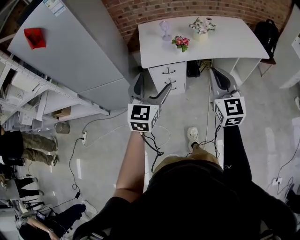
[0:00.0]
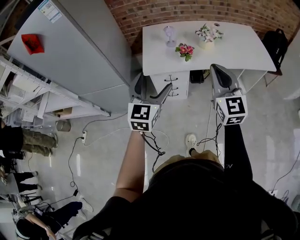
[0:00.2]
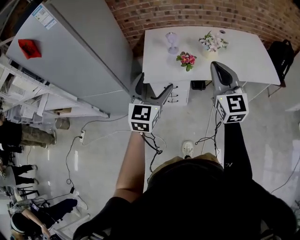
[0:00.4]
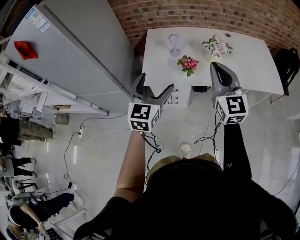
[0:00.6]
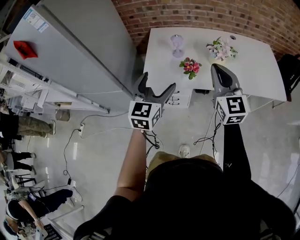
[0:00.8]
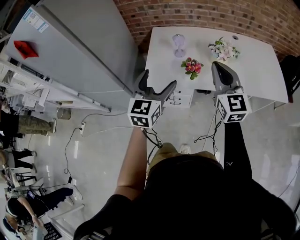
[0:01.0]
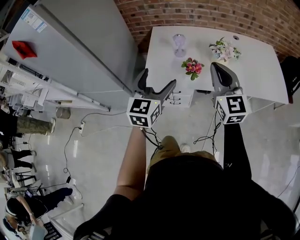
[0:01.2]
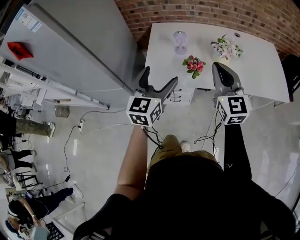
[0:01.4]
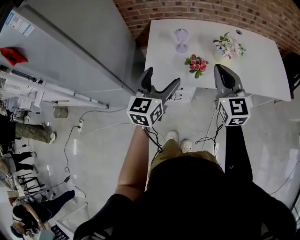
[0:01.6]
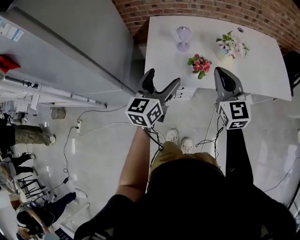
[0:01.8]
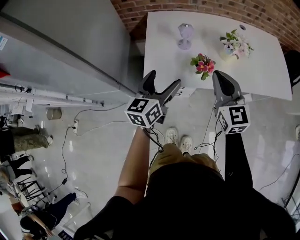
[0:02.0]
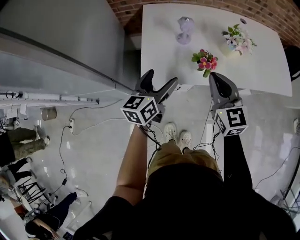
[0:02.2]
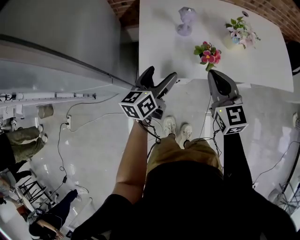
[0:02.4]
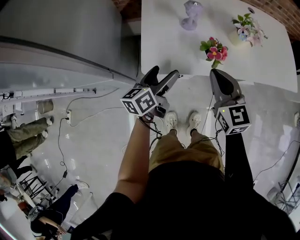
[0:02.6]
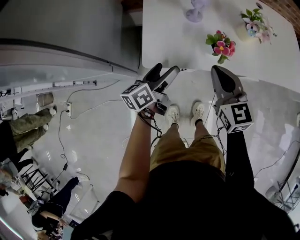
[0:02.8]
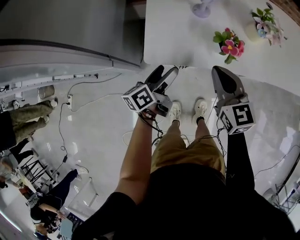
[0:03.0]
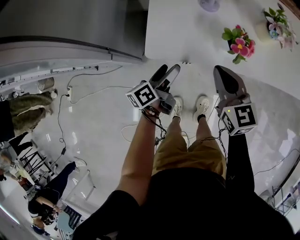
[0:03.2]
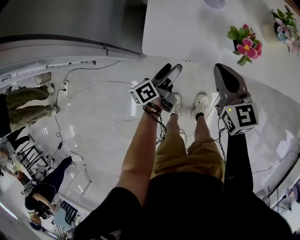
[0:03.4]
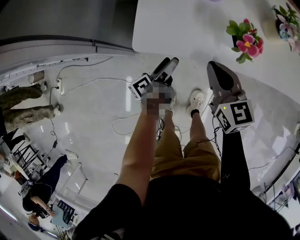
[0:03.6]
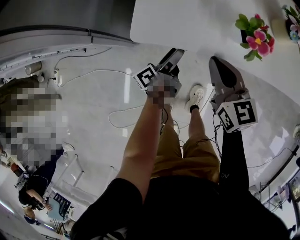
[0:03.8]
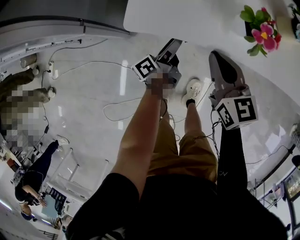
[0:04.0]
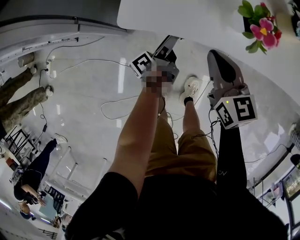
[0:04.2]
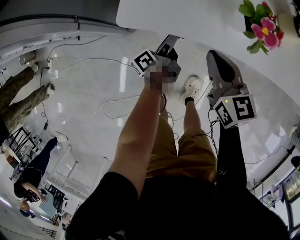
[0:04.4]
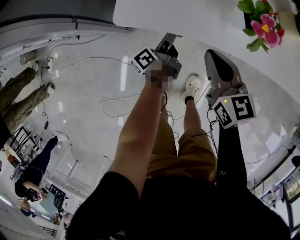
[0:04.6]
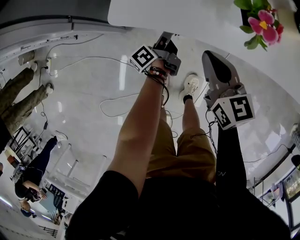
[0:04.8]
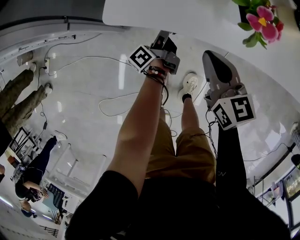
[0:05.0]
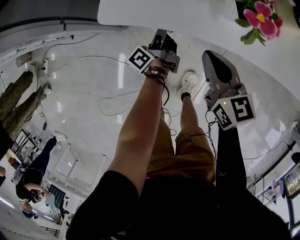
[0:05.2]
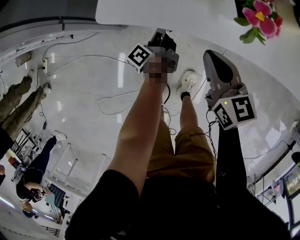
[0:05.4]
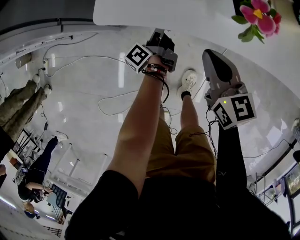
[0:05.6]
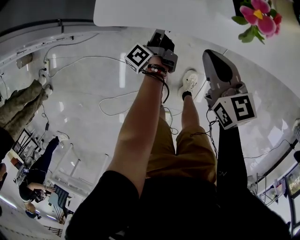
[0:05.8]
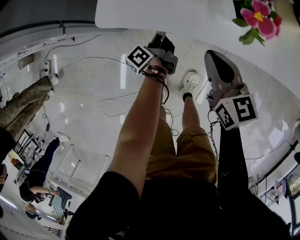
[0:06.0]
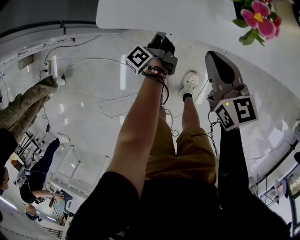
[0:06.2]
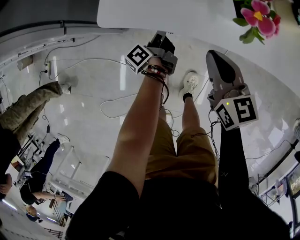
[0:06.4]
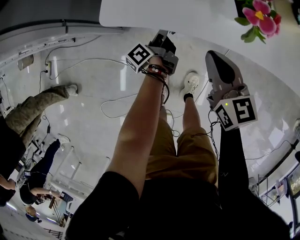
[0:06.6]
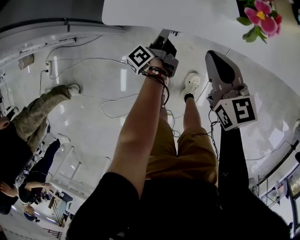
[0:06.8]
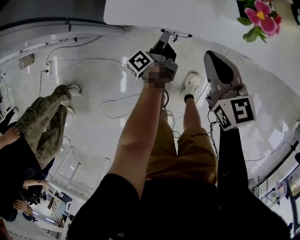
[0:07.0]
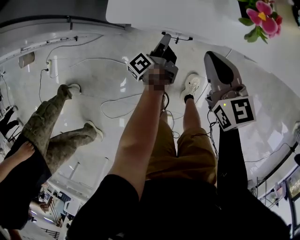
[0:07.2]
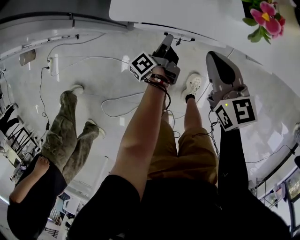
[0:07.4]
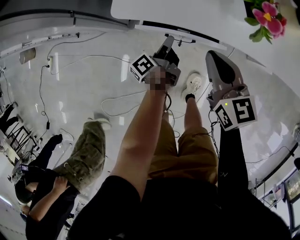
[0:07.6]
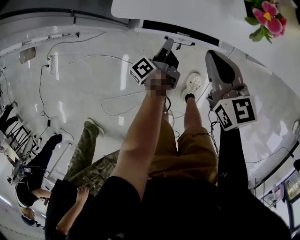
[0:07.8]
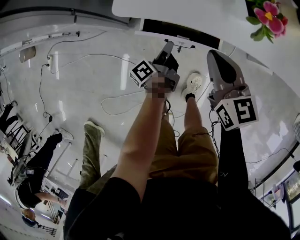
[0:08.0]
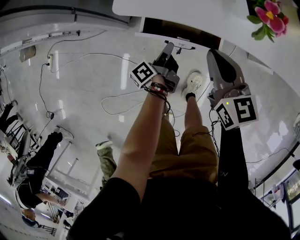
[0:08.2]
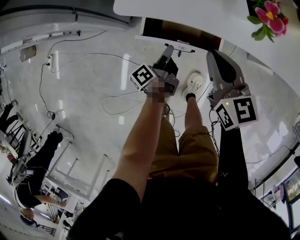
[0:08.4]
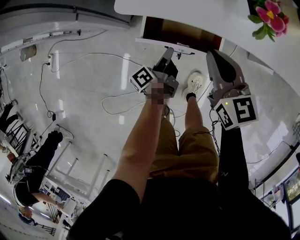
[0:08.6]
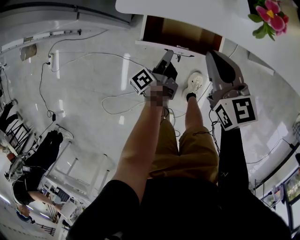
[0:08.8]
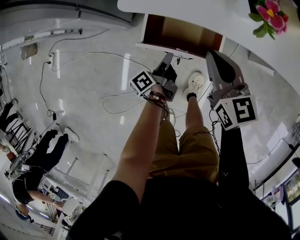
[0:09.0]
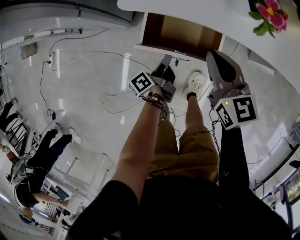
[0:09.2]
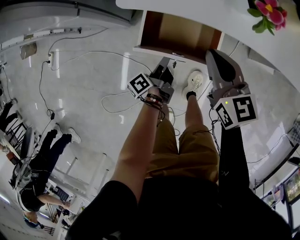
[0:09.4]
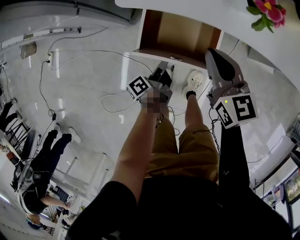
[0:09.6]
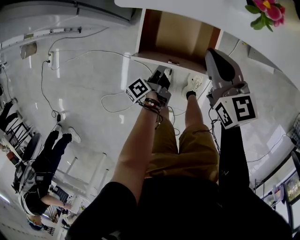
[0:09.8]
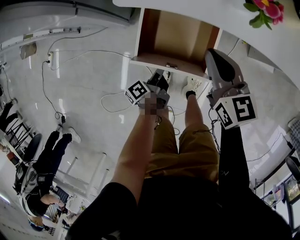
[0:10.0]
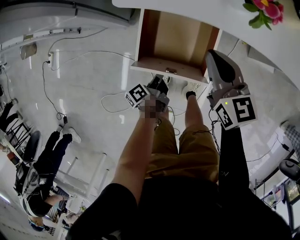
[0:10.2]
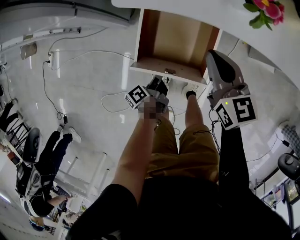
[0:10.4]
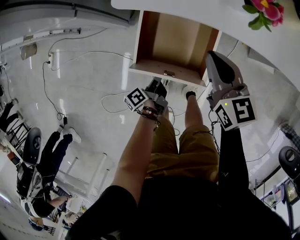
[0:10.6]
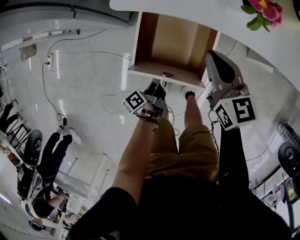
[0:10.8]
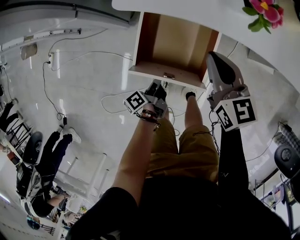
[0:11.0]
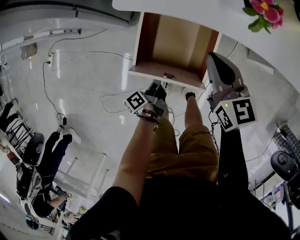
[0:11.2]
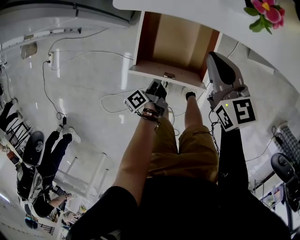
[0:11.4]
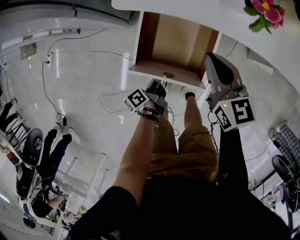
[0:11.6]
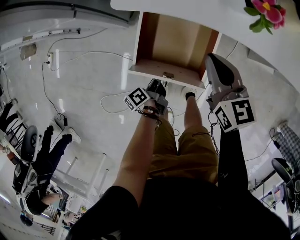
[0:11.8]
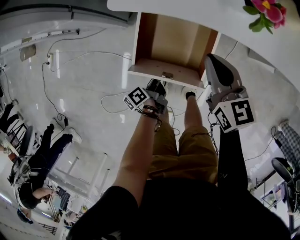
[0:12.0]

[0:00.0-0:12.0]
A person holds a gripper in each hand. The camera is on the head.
0.0 to 1.6 s: Both grippers move forward, some 25 cm.
1.6 to 3.0 s: The left gripper shifts some 25 cm downward, and twists some 60 degrees counterclockwise, seen from behind. Meanwhile the right gripper shifts roughly 25 cm downward and to the left, and turns by about 20 degrees.
3.0 to 4.4 s: The two grippers go roughly 15 cm downward. The left gripper turns by approximately 30 degrees.
4.4 to 6.0 s: The left gripper closes.
6.0 to 7.6 s: The left gripper travels backward by about 5 cm.
7.6 to 9.0 s: The left gripper heads backward, covering about 10 cm.
9.0 to 10.4 s: The left gripper goes approximately 10 cm backward.
10.4 to 12.0 s: The grippers make only small movements.

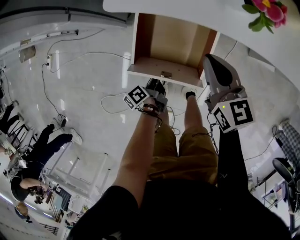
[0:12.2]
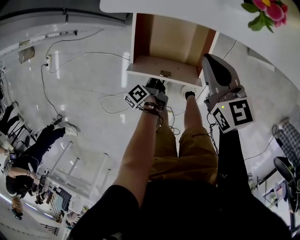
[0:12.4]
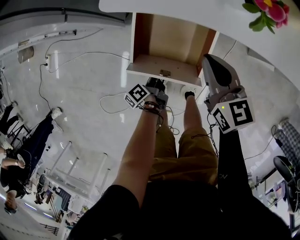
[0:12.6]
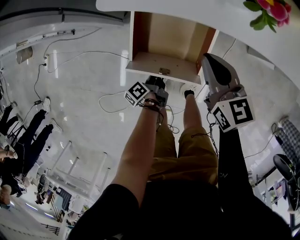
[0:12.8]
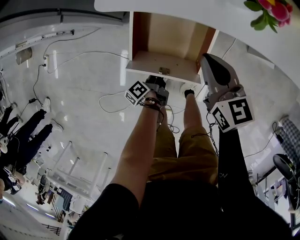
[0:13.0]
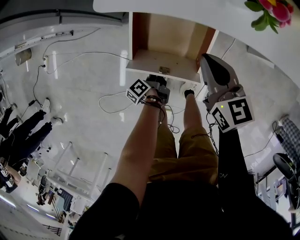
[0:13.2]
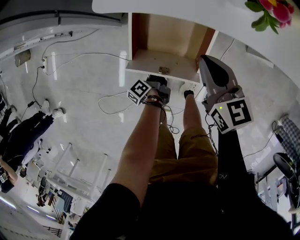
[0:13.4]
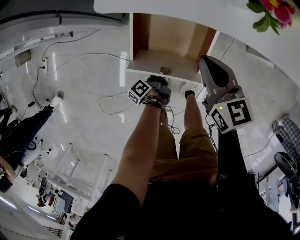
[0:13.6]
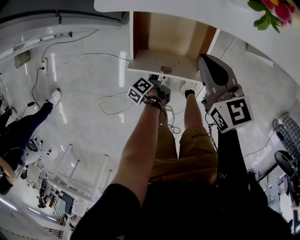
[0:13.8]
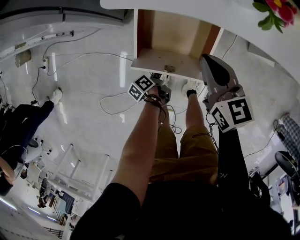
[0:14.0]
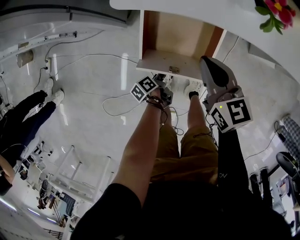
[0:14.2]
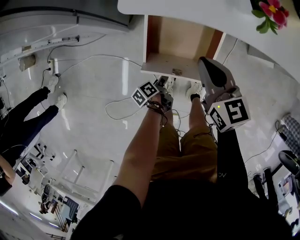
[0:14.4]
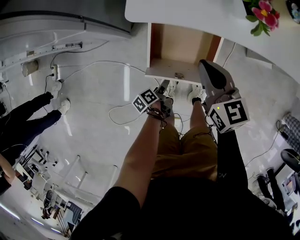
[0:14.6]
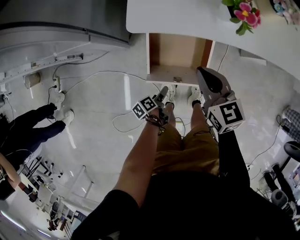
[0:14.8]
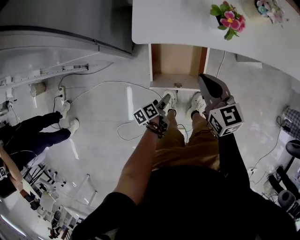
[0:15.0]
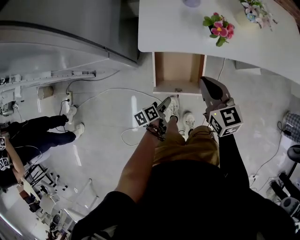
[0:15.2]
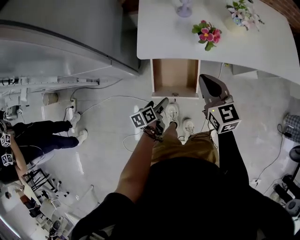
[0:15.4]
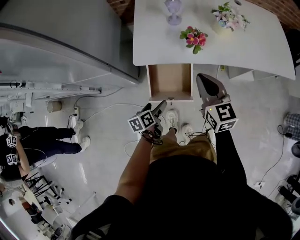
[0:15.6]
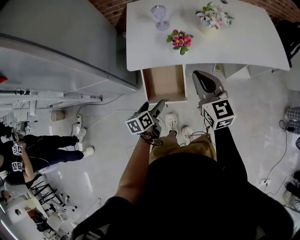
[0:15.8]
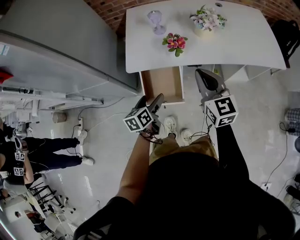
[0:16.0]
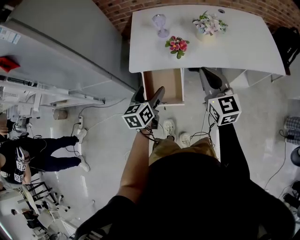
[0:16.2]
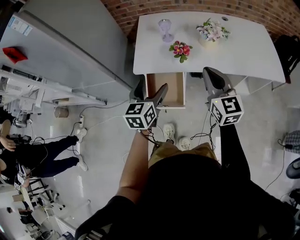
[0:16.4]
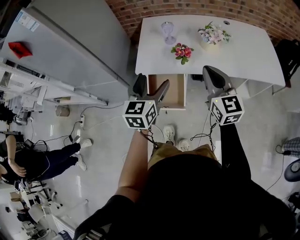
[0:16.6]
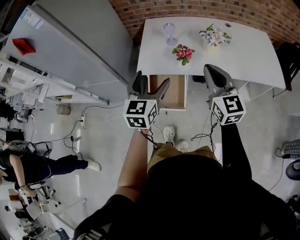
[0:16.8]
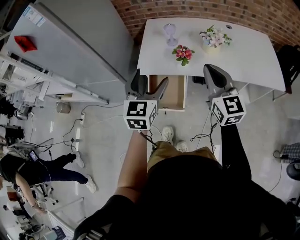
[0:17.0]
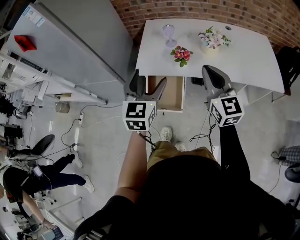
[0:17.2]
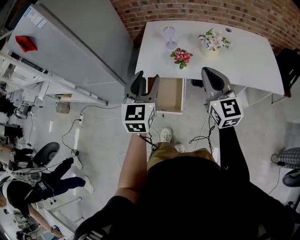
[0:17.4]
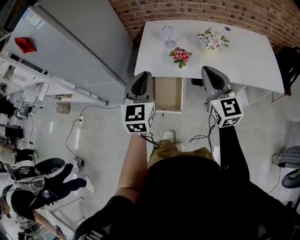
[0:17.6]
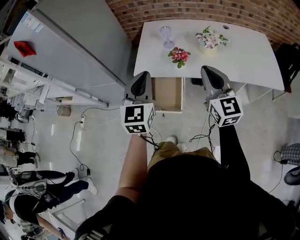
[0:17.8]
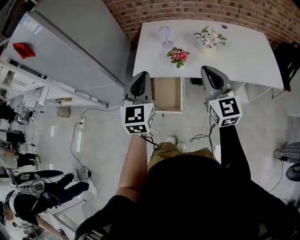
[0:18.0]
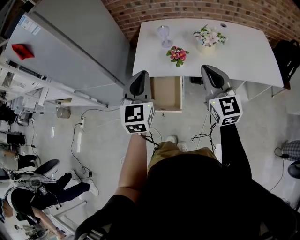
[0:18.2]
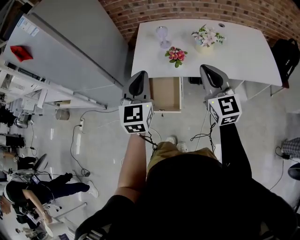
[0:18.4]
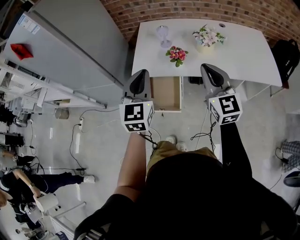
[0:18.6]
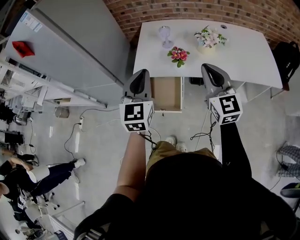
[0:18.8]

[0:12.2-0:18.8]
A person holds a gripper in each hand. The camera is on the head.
12.2 to 13.8 s: The left gripper travels downward by roughly 10 cm, and opens.
13.8 to 15.4 s: The grippers both shift upward by approximately 25 cm. The left gripper rotates around the line of its fingers by about 40 degrees, clockwise from behind.
15.4 to 17.2 s: The right gripper moves upward and to the right, about 25 cm, and swivels approximately 20 degrees, while the left gripper moves upward, approximately 40 cm, and twists roughly 60 degrees clockwise, seen from behind.
17.2 to 18.8 s: The left gripper closes its fingers.

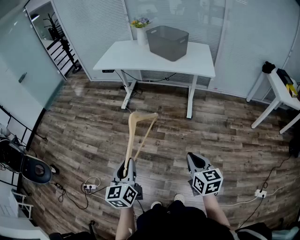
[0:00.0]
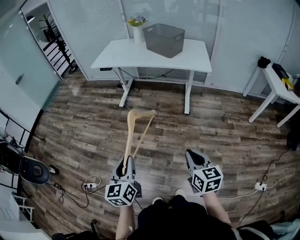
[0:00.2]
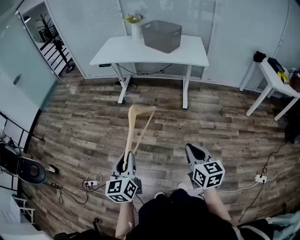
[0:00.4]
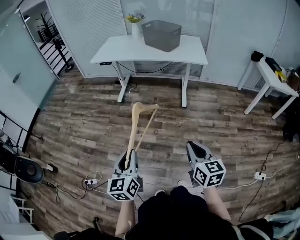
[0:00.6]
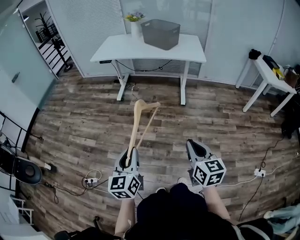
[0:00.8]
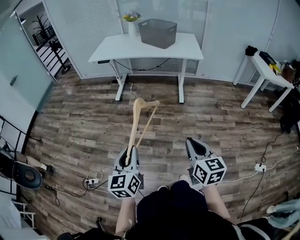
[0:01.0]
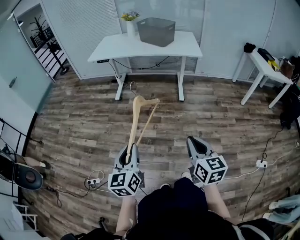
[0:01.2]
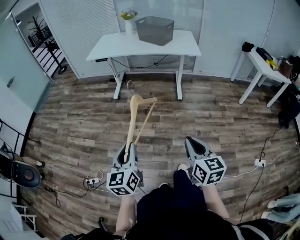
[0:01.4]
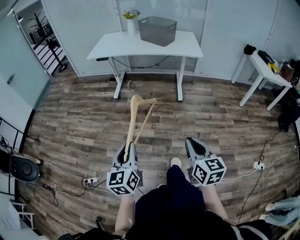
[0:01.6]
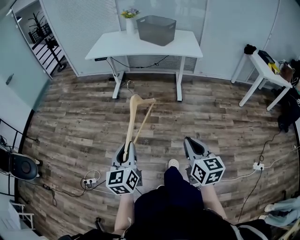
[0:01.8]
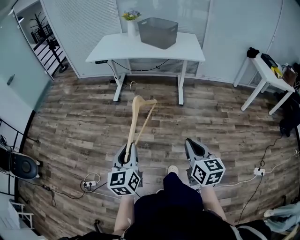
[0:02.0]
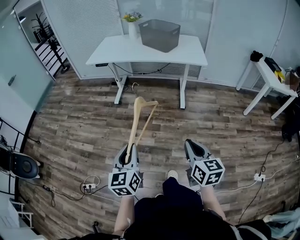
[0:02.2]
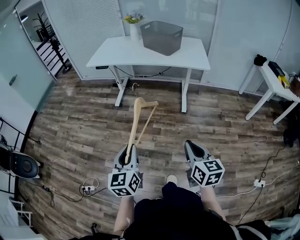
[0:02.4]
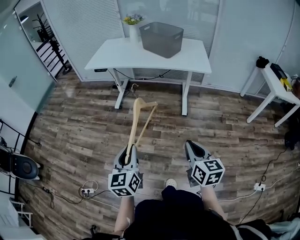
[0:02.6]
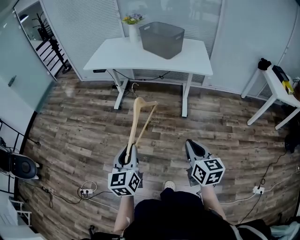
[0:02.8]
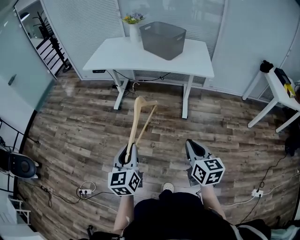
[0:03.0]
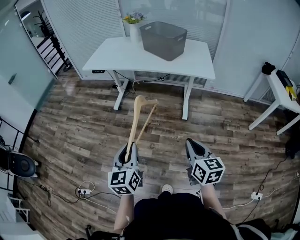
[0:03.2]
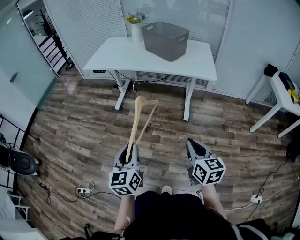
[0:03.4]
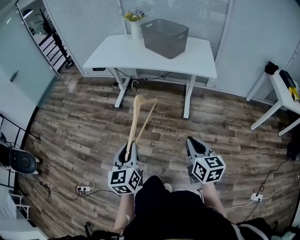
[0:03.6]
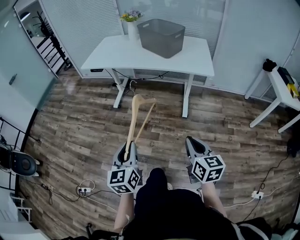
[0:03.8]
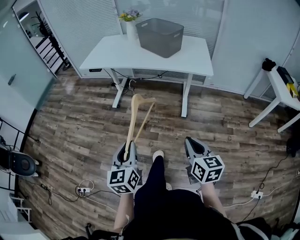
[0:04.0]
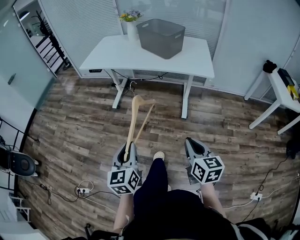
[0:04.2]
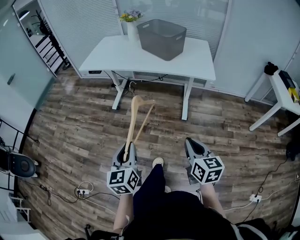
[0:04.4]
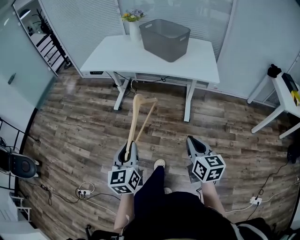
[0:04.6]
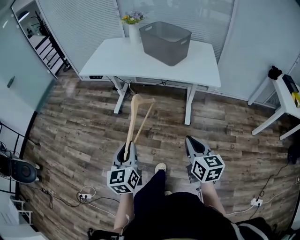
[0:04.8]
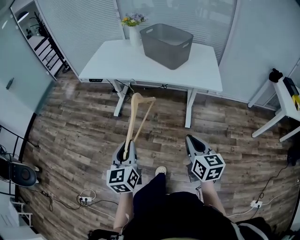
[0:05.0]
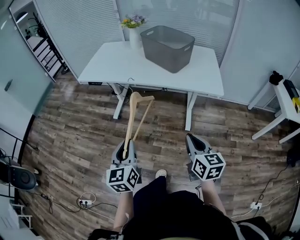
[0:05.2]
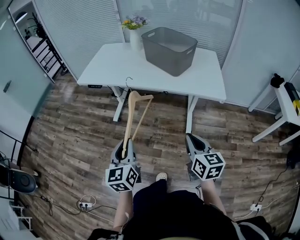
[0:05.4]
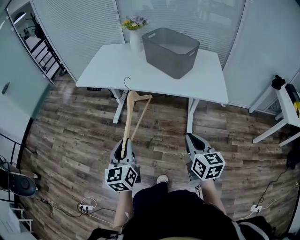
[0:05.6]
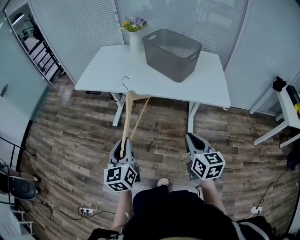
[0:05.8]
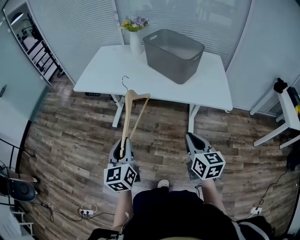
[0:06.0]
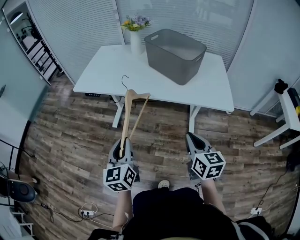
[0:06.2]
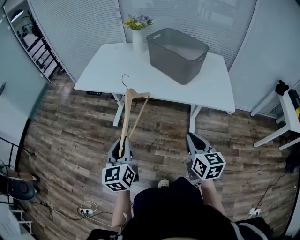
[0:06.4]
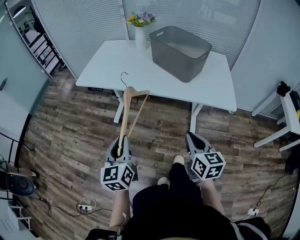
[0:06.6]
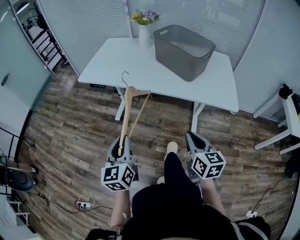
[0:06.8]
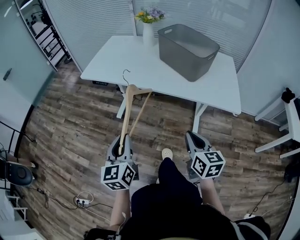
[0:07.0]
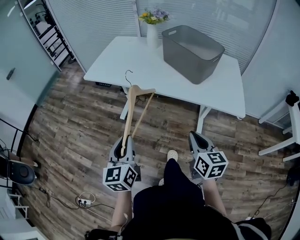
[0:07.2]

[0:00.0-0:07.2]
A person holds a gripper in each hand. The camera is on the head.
0.0 to 1.4 s: Both grippers travel together backward and to the left, some 15 cm.
1.4 to 2.8 s: Both grippers move forward and to the right, approximately 25 cm.
2.8 to 4.4 s: The left gripper moves forward, about 10 cm; the right gripper is displaced forward and to the right by about 10 cm.
4.4 to 5.8 s: The two grippers go some 25 cm forward.
5.8 to 7.2 s: The right gripper heads forward, covering some 5 cm.
